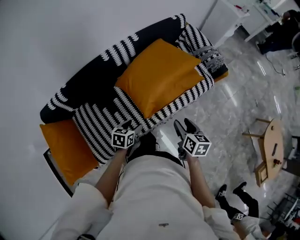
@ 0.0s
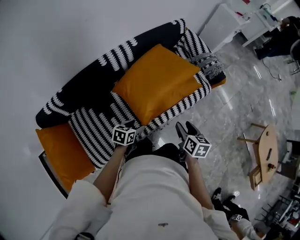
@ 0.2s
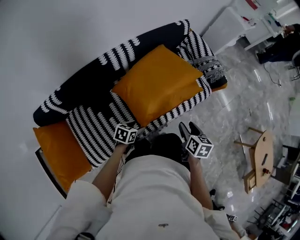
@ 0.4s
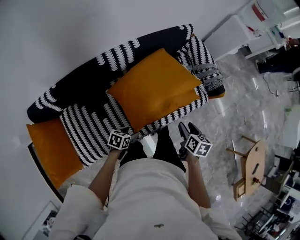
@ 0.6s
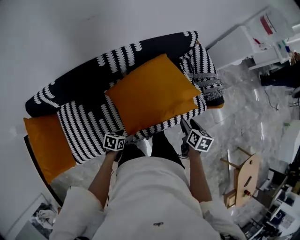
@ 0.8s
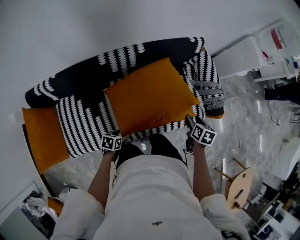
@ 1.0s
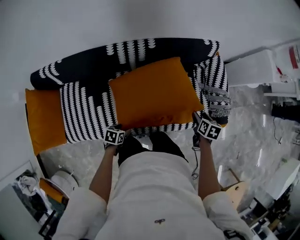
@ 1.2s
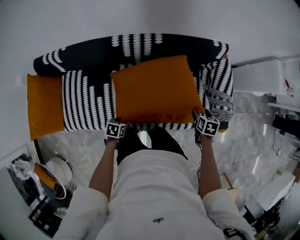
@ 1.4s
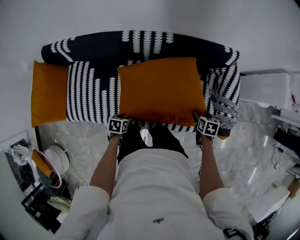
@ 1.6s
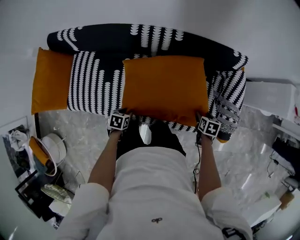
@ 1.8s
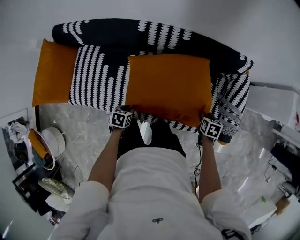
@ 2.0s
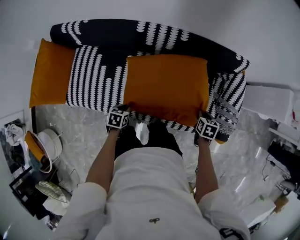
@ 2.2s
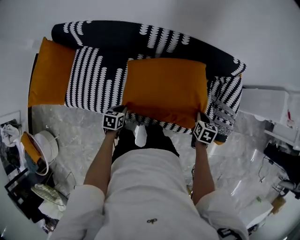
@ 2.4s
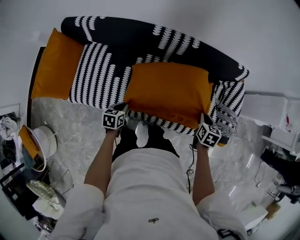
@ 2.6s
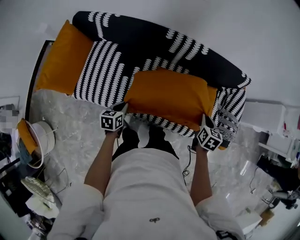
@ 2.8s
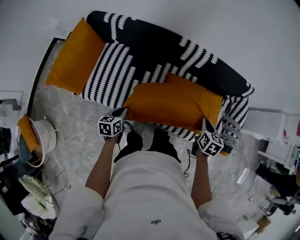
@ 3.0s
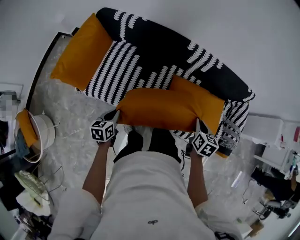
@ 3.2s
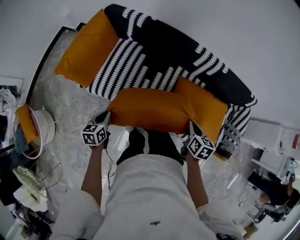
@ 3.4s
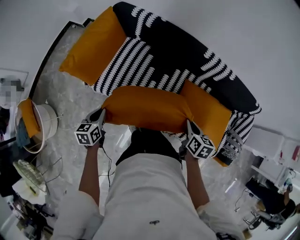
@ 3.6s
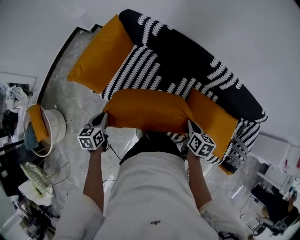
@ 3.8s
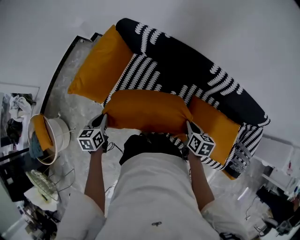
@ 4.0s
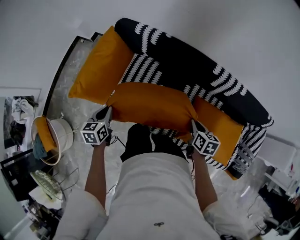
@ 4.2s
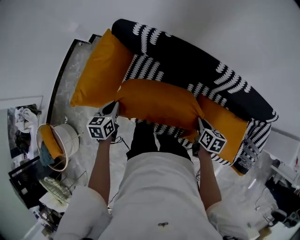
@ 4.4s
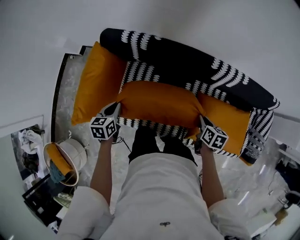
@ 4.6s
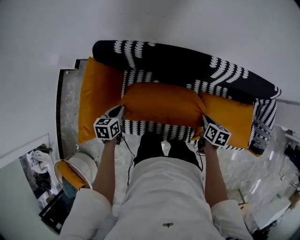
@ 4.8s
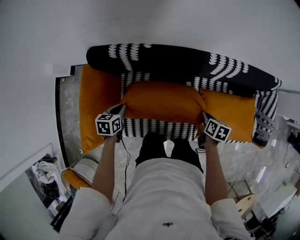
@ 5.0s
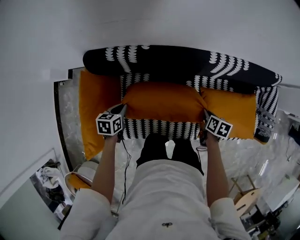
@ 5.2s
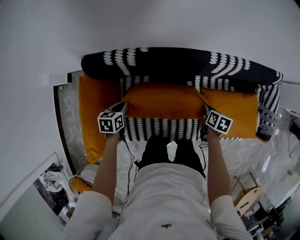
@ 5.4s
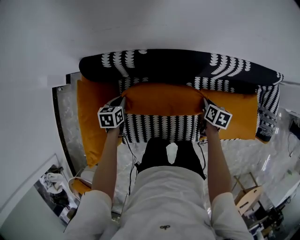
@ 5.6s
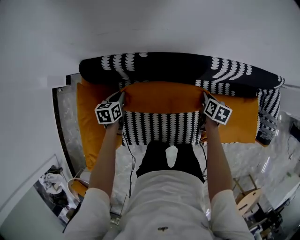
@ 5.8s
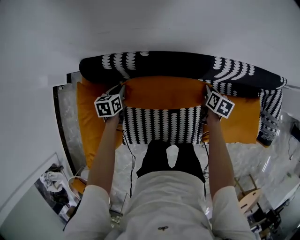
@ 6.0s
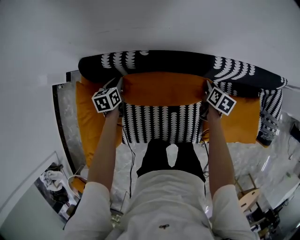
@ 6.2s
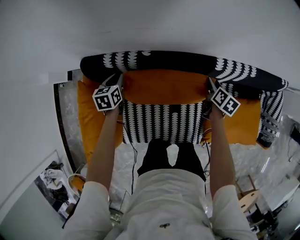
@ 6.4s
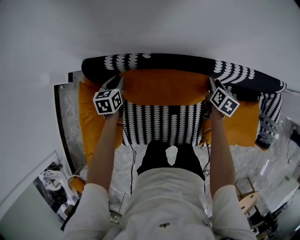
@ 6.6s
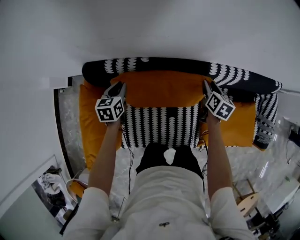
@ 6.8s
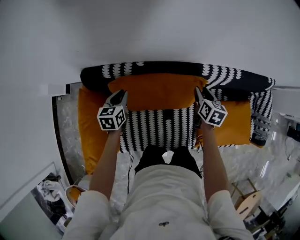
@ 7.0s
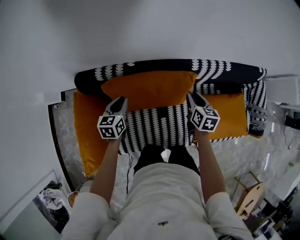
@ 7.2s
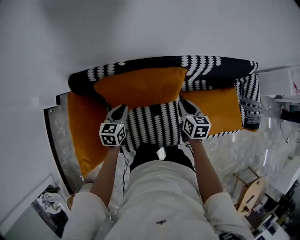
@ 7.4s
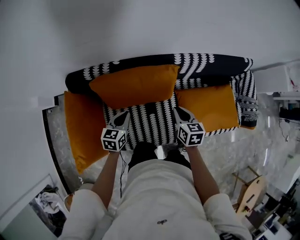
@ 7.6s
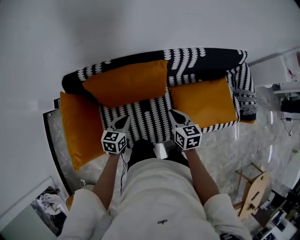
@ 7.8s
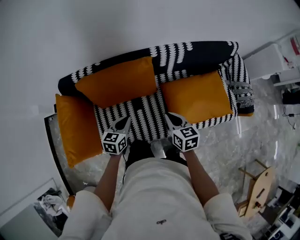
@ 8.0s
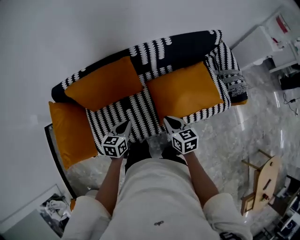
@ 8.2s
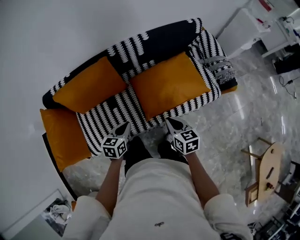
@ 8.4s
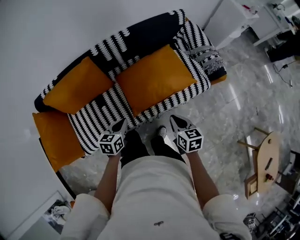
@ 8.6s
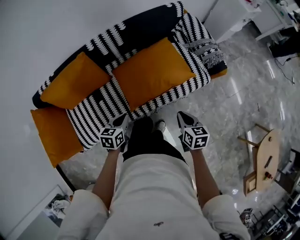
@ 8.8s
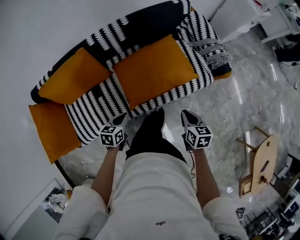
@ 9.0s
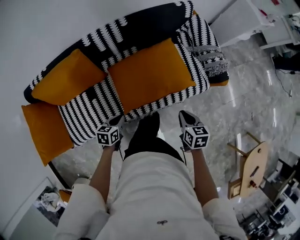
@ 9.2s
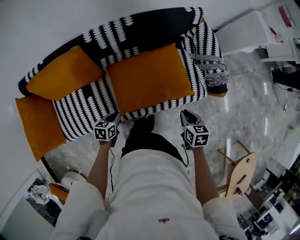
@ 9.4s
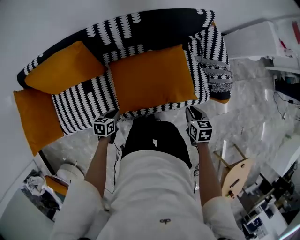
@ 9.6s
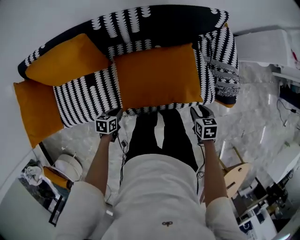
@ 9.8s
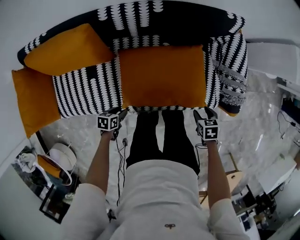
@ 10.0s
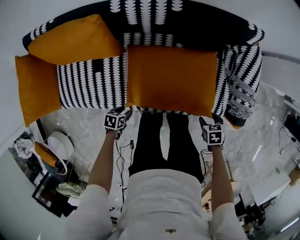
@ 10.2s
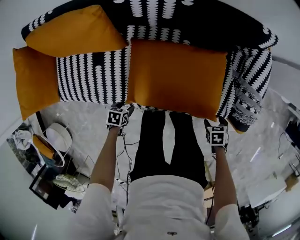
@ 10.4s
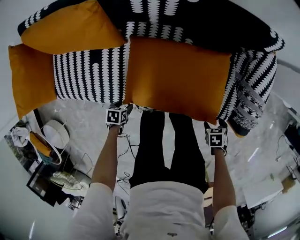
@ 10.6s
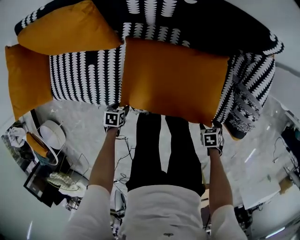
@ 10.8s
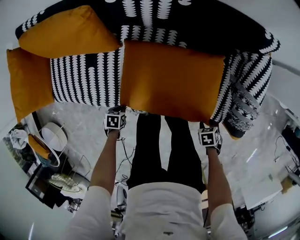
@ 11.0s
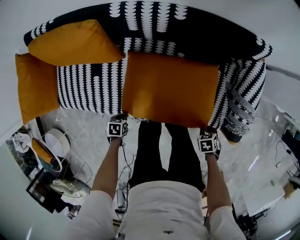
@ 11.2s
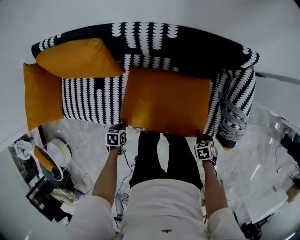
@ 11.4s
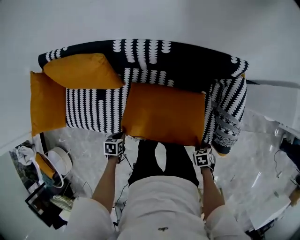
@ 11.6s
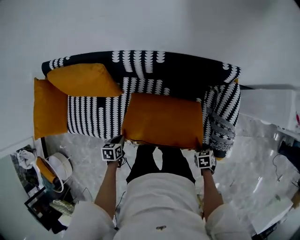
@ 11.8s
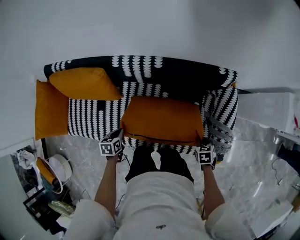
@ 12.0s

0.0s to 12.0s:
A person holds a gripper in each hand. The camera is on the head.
0.0s to 1.6s: The left gripper moves approximately 20 cm, and rotates about 40 degrees; the right gripper shifts by about 40 cm, and swivels approximately 50 degrees.
1.6s to 3.0s: The right gripper goes roughly 30 cm to the left, upward and backward, changes its angle by about 20 degrees, and closes its fingers. The left gripper heads to the left, backward and upward, covering approximately 25 cm, changes its angle by about 40 degrees, and closes its fingers.
3.0s to 4.4s: The left gripper shifts by roughly 30 cm, while the right gripper shifts by roughly 30 cm, and turns by about 20 degrees.
4.4s to 6.0s: The left gripper ends up approximately 35 cm from where it was, and swivels roughly 20 degrees. Meanwhile the right gripper changes place by about 25 cm, and turns by about 30 degrees.
6.0s to 7.6s: The right gripper travels backward and upward by some 25 cm, changes its angle by some 20 degrees, and opens, then closes again, while the left gripper heads to the right, backward and upward, covering some 25 cm, and swivels some 30 degrees.
7.6s to 9.0s: Both grippers are carried to the right and backward, some 50 cm. The left gripper rotates some 20 degrees.
9.0s to 10.4s: The right gripper ends up about 30 cm from where it was, tips its fingers downward by roughly 40 degrees, and opens its fingers; the left gripper goes about 25 cm downward, rotates approximately 40 degrees, and opens.
10.4s to 12.0s: The left gripper heads upward, covering about 20 cm, rotates roughly 30 degrees, and closes its fingers; the right gripper changes place by some 20 cm, and closes.

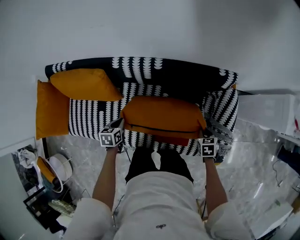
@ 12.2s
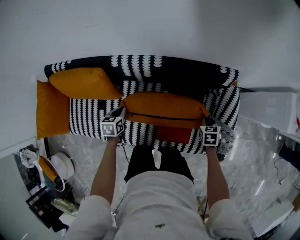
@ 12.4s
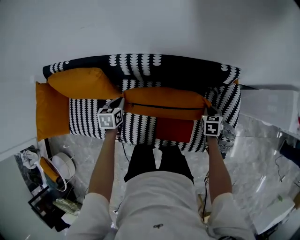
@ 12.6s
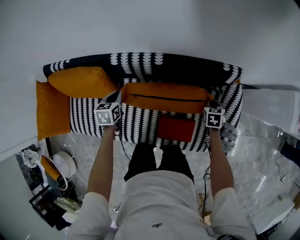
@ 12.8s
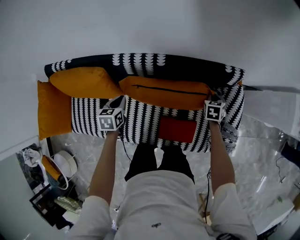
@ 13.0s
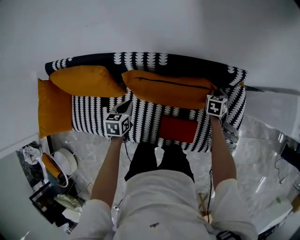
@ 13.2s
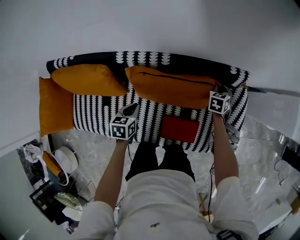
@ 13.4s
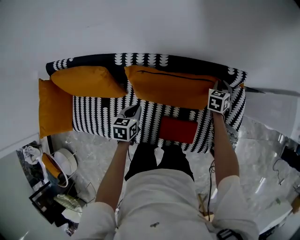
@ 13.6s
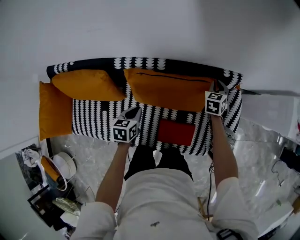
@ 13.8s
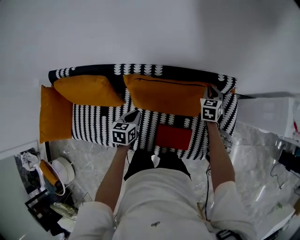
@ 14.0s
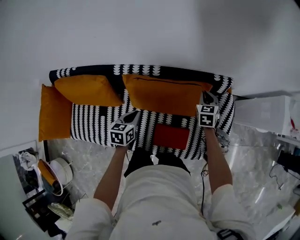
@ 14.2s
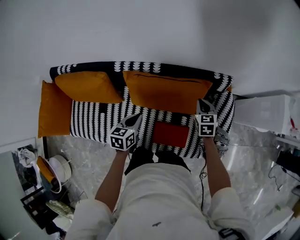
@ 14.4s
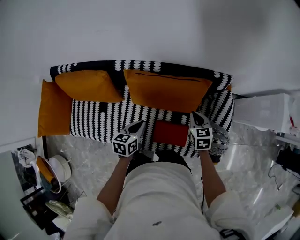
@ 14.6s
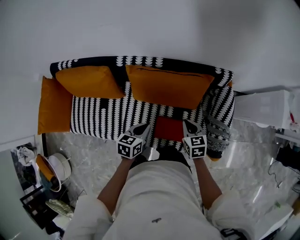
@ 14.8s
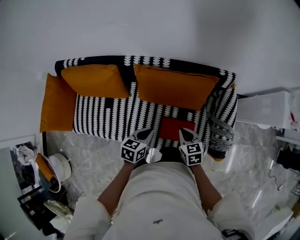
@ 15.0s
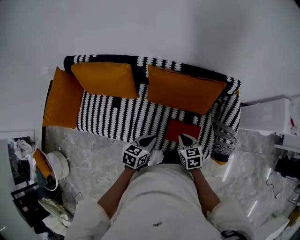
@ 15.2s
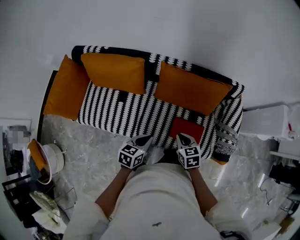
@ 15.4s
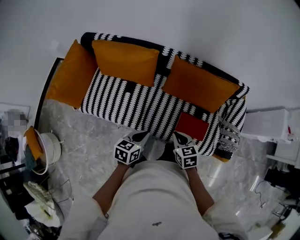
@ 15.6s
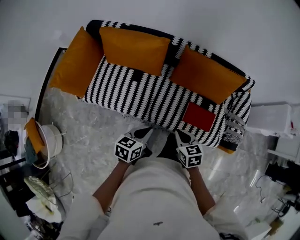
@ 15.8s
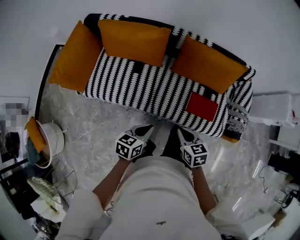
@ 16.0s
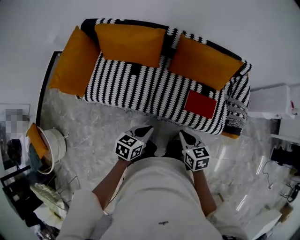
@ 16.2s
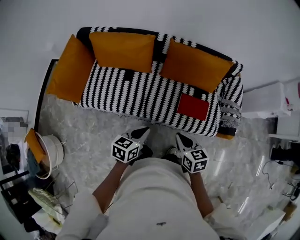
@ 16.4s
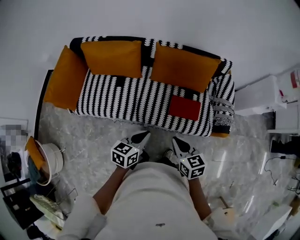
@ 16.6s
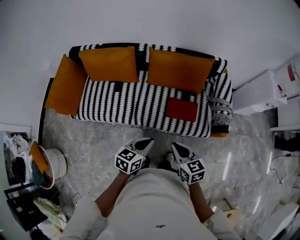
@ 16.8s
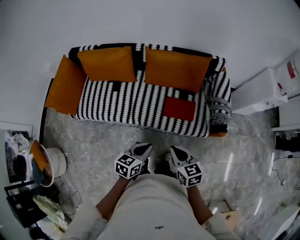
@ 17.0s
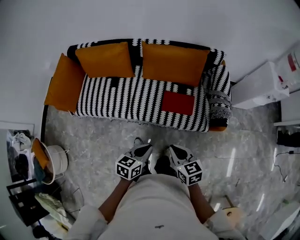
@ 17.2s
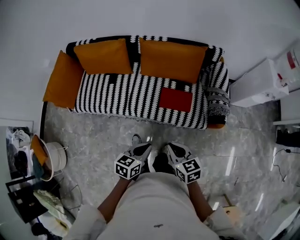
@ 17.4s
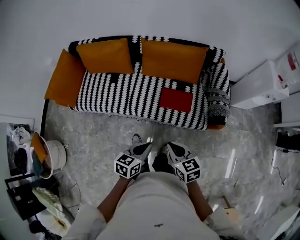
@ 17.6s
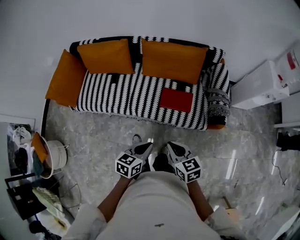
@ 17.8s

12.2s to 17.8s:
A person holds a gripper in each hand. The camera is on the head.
12.2s to 13.6s: The left gripper shifts about 10 cm forward; the right gripper heads forward, covering some 25 cm, and swivels some 30 degrees.
13.6s to 15.0s: The left gripper shifts some 20 cm backward, to the right and upward. The right gripper is displaced backward by approximately 35 cm, and changes its angle by some 40 degrees.
15.0s to 16.4s: The two grippers go about 35 cm backward and to the left.
16.4s to 17.8s: The grippers both shift to the right and backward by roughly 20 cm.

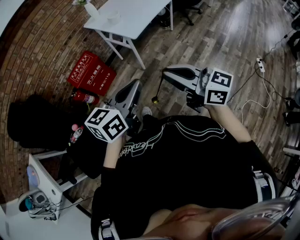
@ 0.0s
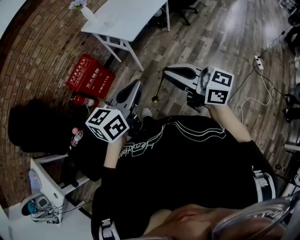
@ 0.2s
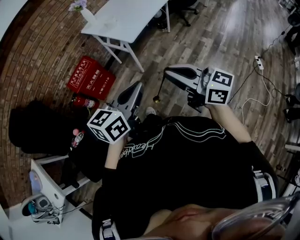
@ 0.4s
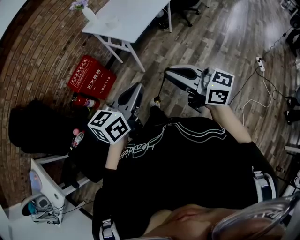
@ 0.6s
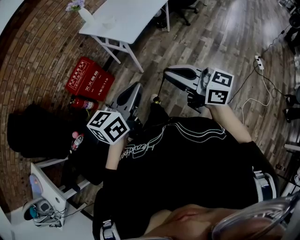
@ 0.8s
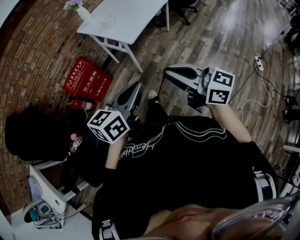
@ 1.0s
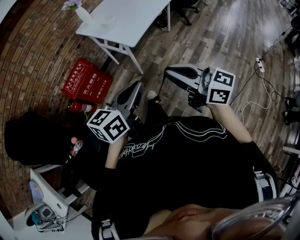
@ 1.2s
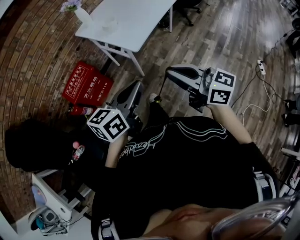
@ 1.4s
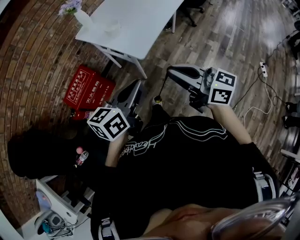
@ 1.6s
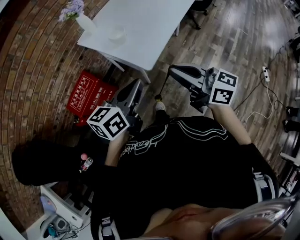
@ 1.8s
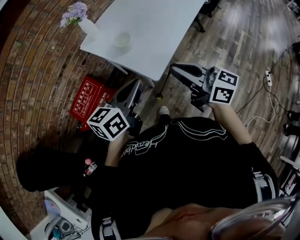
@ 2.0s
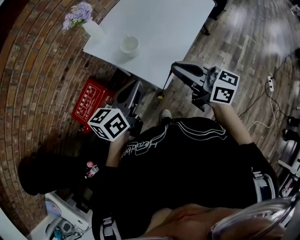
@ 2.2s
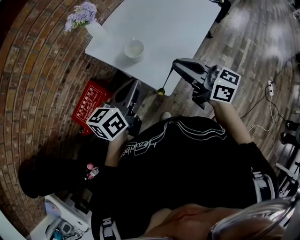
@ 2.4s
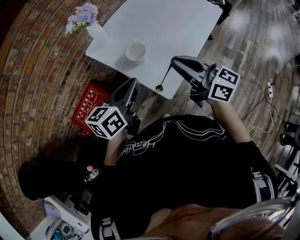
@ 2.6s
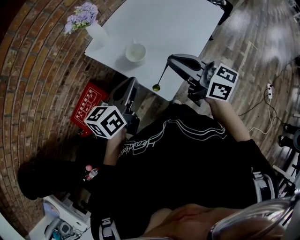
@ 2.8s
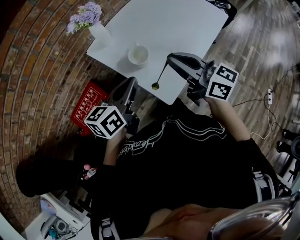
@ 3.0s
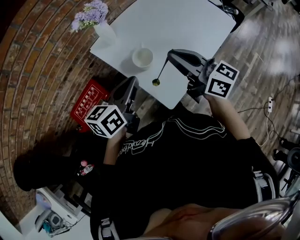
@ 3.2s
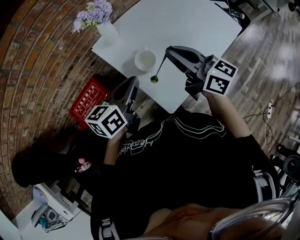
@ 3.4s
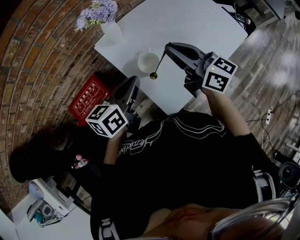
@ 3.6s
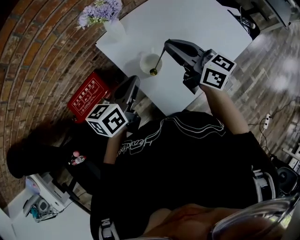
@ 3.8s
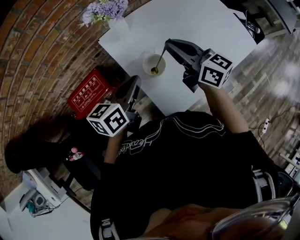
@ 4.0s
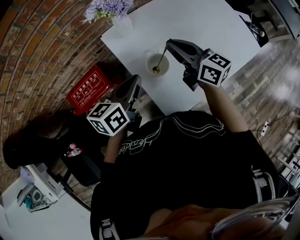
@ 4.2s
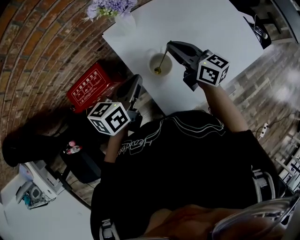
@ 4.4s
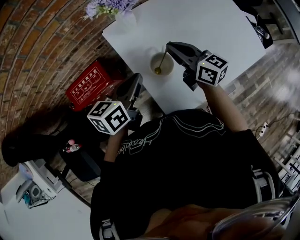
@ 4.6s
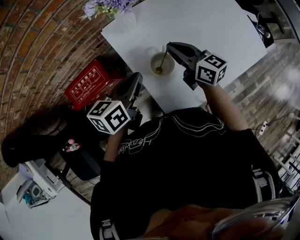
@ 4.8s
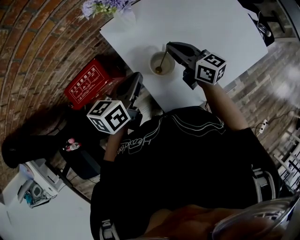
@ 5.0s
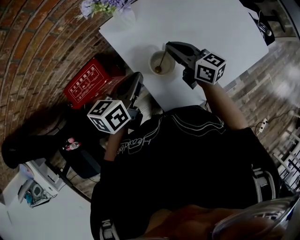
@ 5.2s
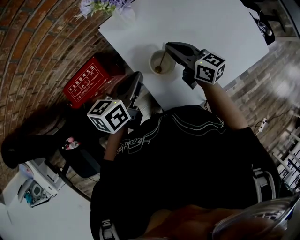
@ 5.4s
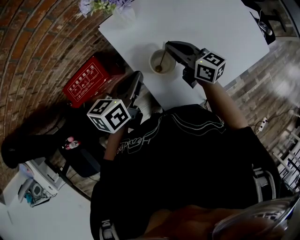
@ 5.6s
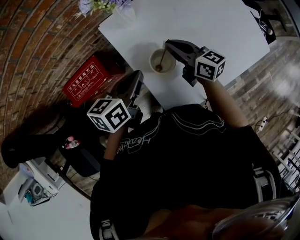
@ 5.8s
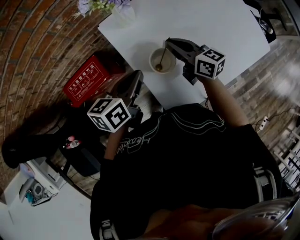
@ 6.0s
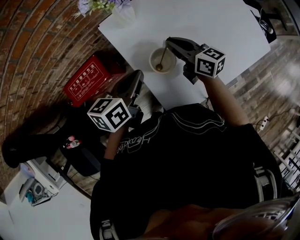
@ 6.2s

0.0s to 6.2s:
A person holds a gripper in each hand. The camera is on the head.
0.0s to 1.6s: Both grippers move forward, some 25 cm.
1.6s to 3.2s: Both grippers travel together forward, some 40 cm.
3.2s to 4.6s: The right gripper moves forward and downward, about 20 cm. The left gripper goes some 10 cm forward and downward.
4.6s to 6.2s: The right gripper moves downward, some 5 cm.
